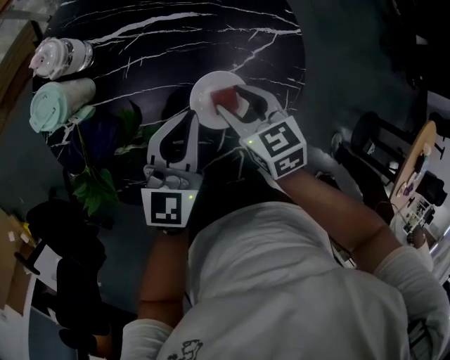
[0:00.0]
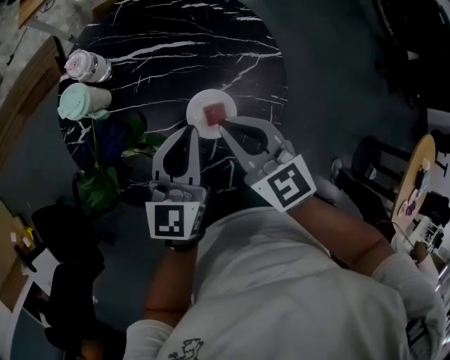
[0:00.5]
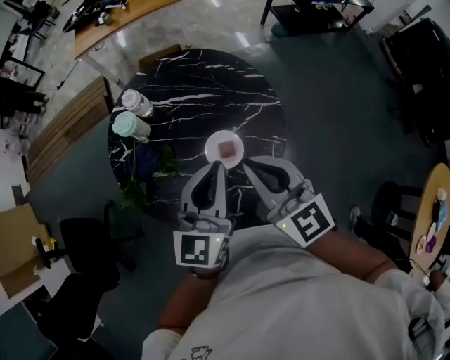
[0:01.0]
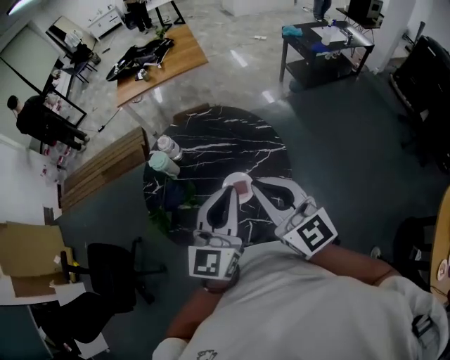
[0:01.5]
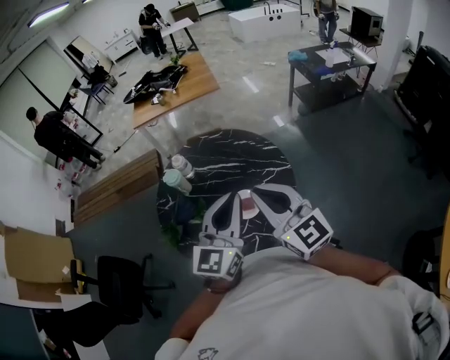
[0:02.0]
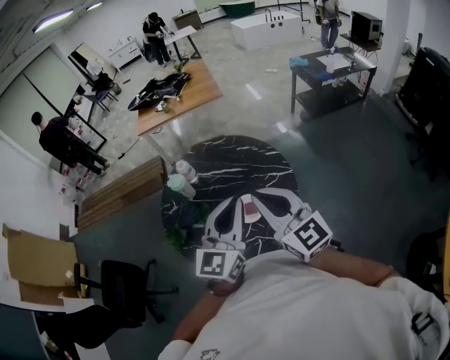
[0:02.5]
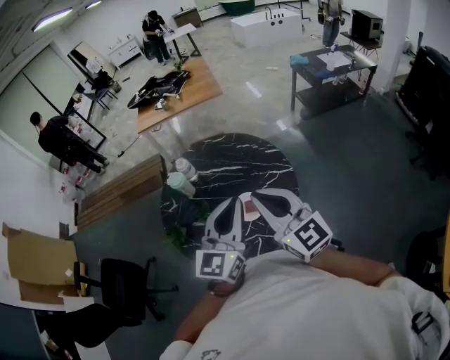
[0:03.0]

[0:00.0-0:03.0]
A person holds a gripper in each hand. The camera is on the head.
0:00.0 to 0:01.5: The left gripper moves upward, roughly 35 cm, and swivels roughly 20 degrees.

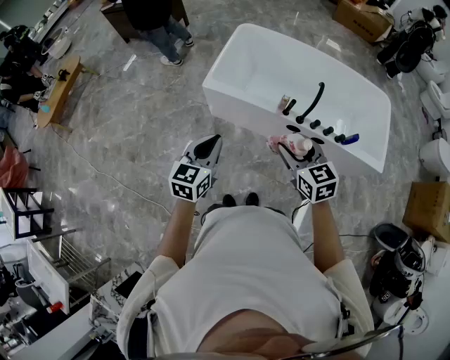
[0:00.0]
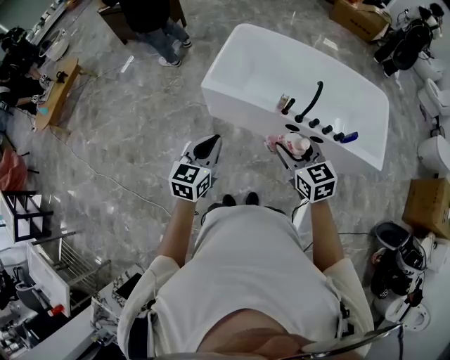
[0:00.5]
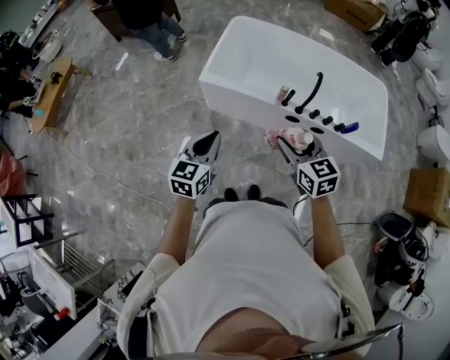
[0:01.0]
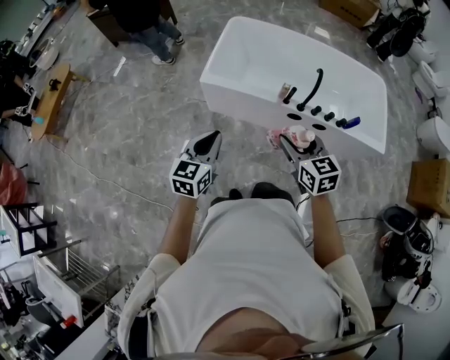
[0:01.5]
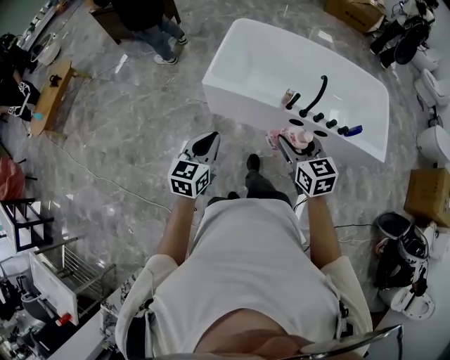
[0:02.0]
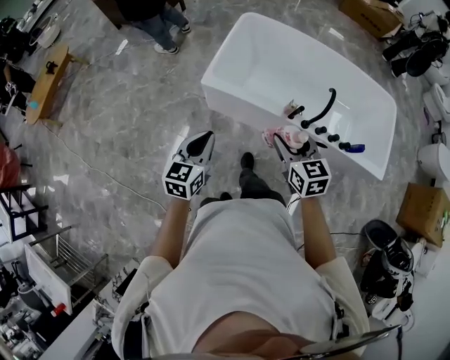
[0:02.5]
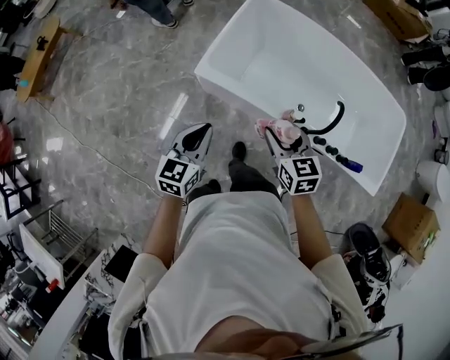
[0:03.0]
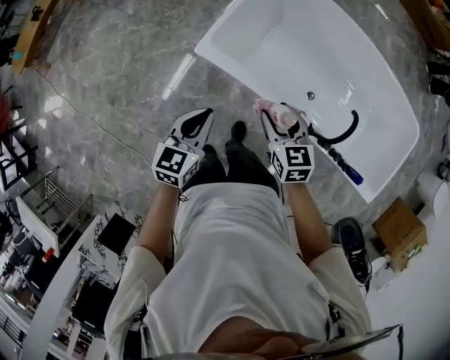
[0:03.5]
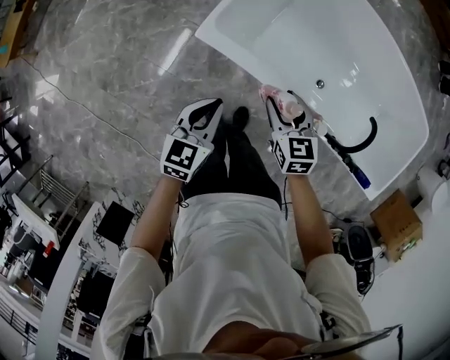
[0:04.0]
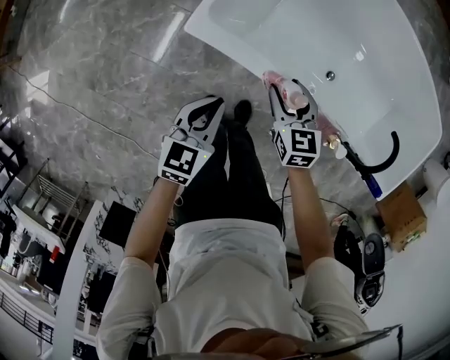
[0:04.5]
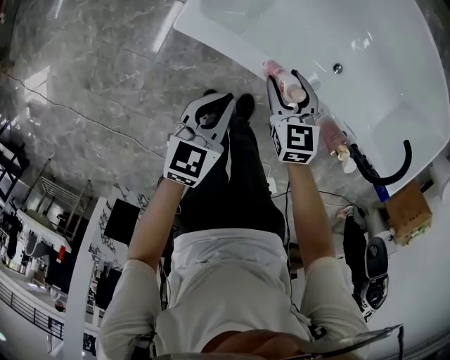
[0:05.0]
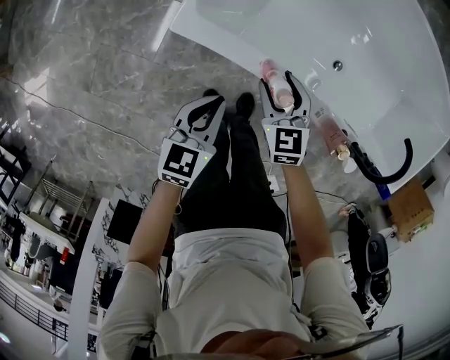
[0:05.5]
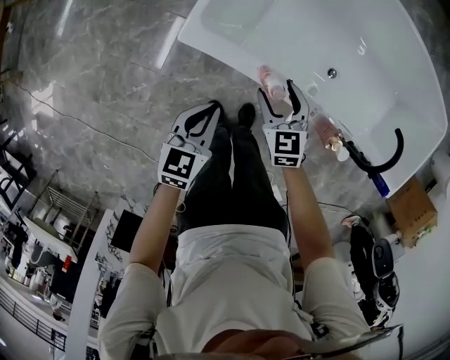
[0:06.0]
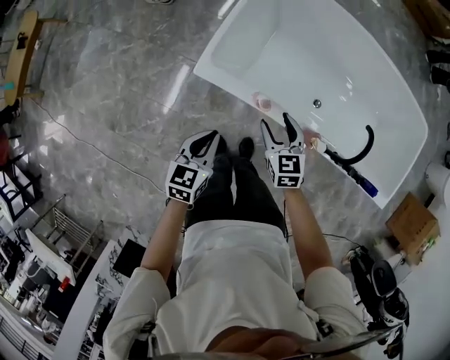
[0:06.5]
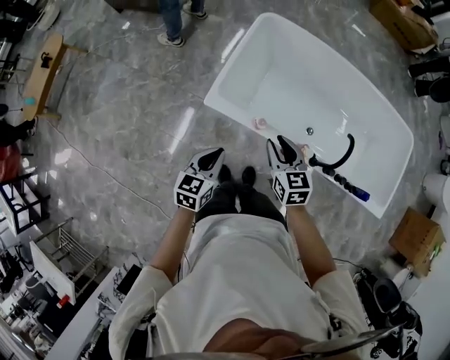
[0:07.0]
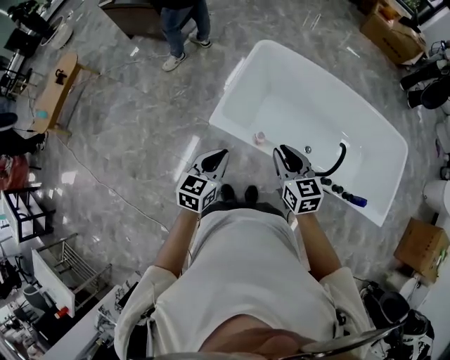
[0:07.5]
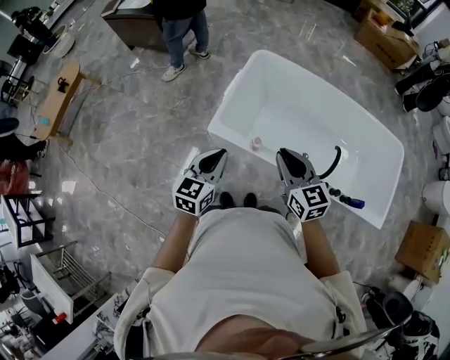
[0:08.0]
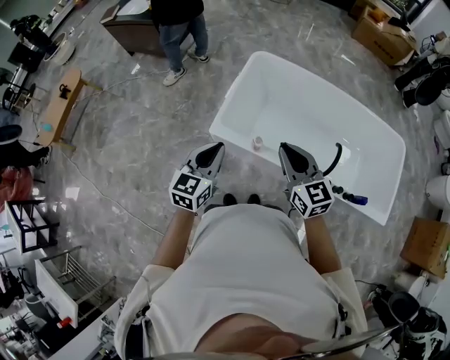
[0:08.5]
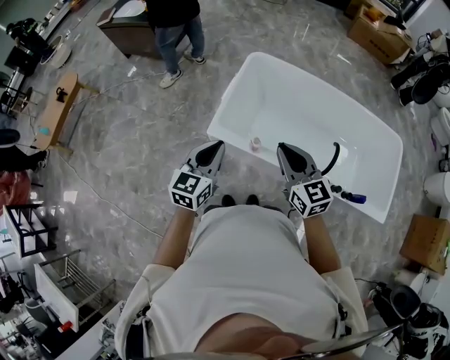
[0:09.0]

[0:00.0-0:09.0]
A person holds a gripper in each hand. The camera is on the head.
0:00.0 to 0:02.0: The left gripper moves to the left, about 5 cm.
0:02.0 to 0:04.5: The two grippers go some 60 cm forward and downward.
0:04.5 to 0:07.0: Both grippers travel together upward, approximately 25 cm.
0:07.0 to 0:09.0: Both grippers move upward, roughly 20 cm. The right gripper changes its angle by approximately 20 degrees.

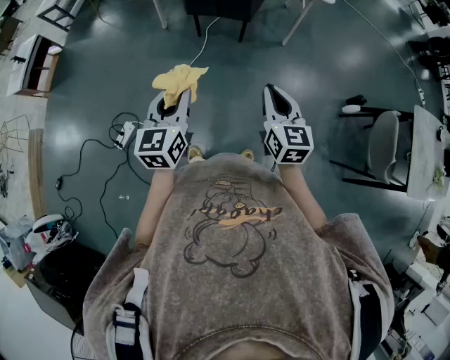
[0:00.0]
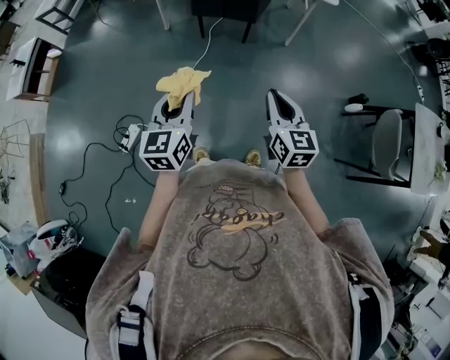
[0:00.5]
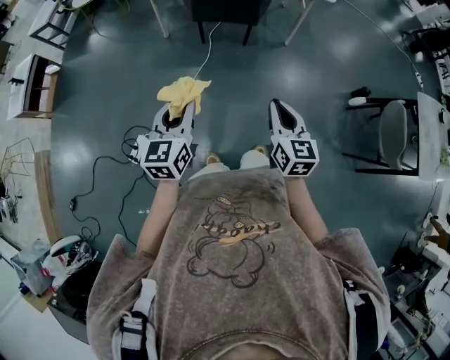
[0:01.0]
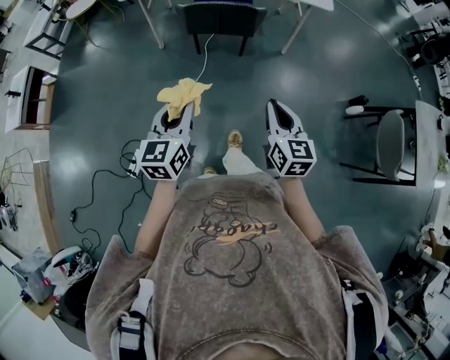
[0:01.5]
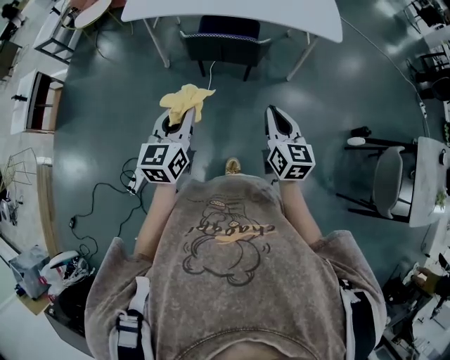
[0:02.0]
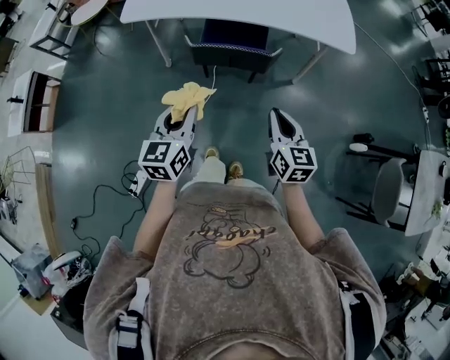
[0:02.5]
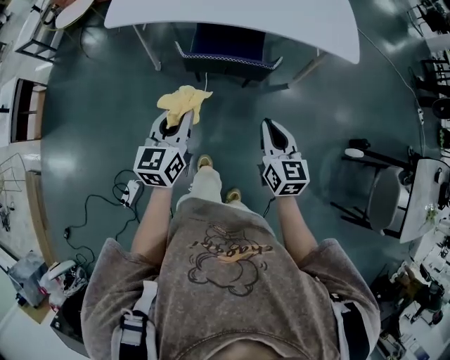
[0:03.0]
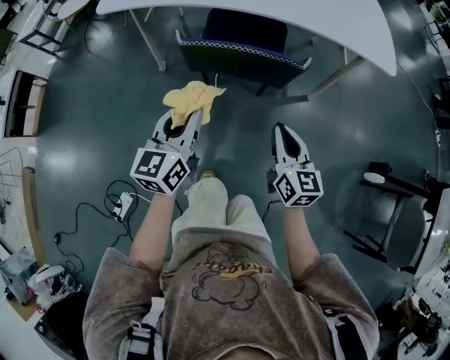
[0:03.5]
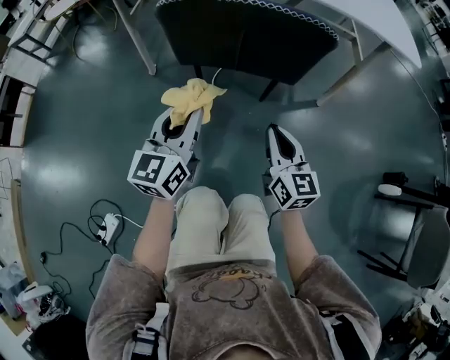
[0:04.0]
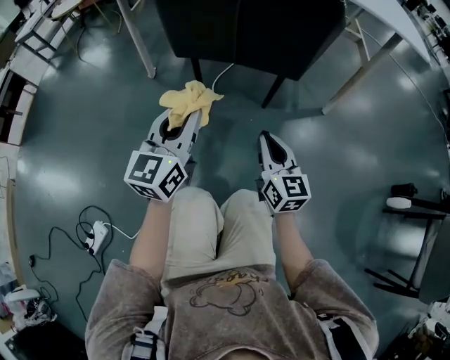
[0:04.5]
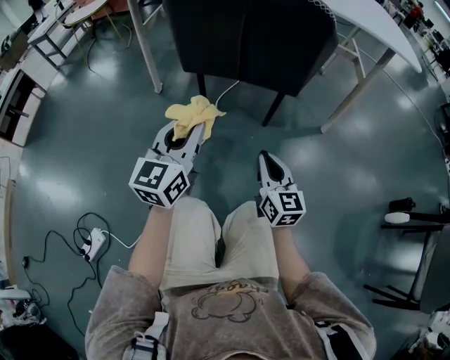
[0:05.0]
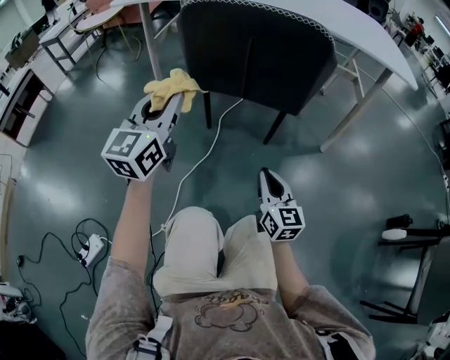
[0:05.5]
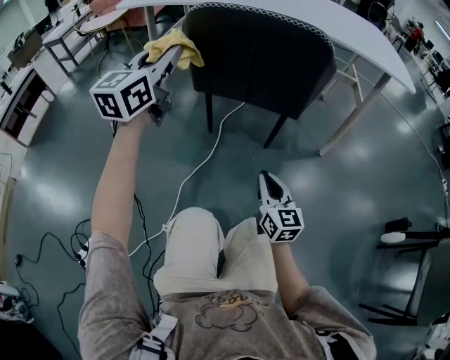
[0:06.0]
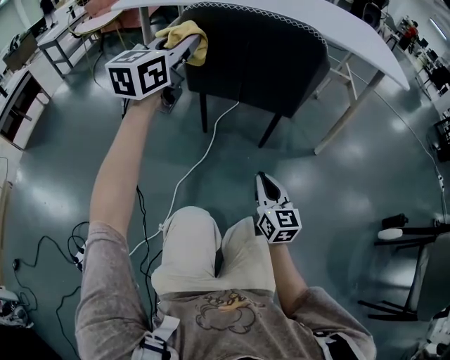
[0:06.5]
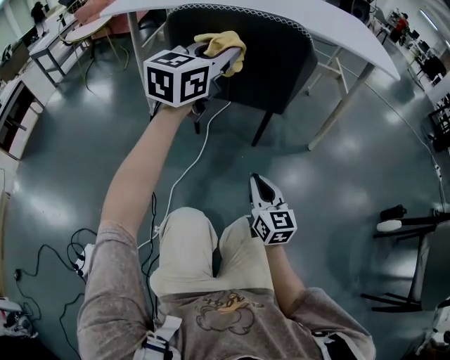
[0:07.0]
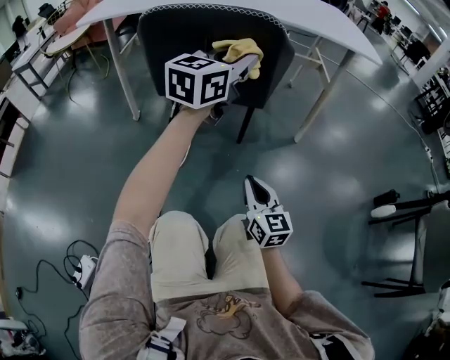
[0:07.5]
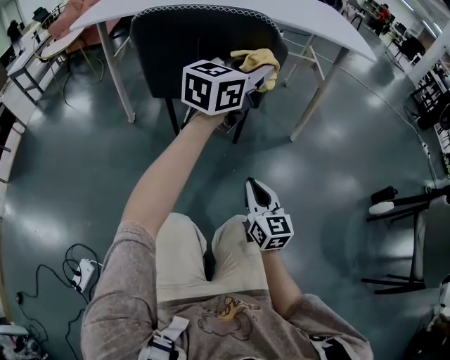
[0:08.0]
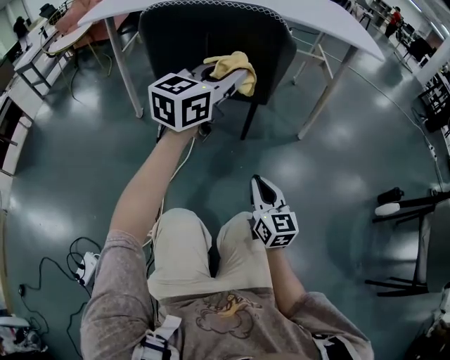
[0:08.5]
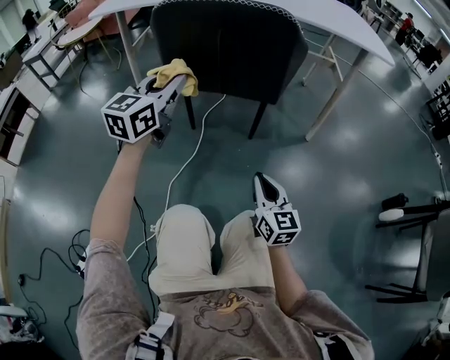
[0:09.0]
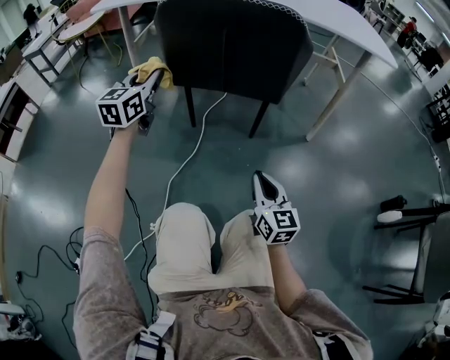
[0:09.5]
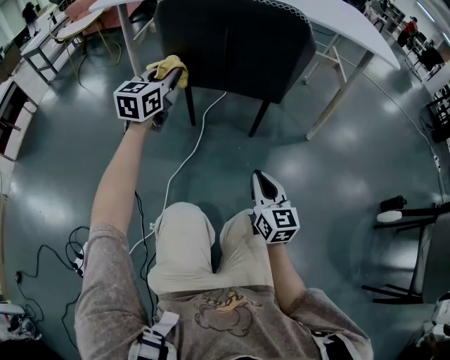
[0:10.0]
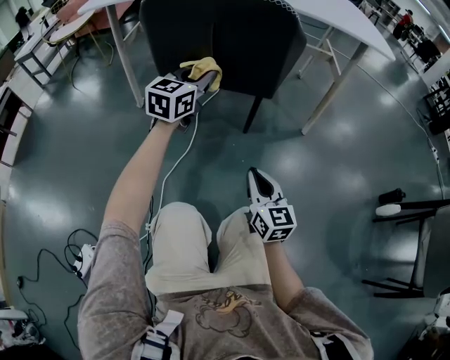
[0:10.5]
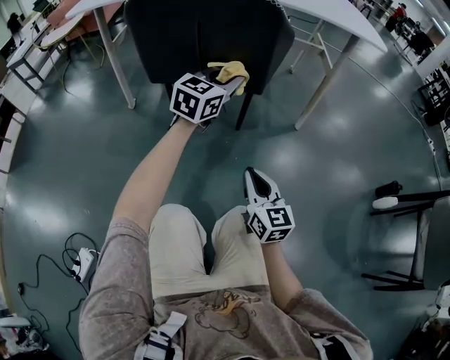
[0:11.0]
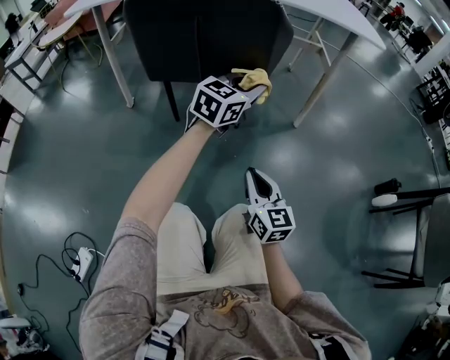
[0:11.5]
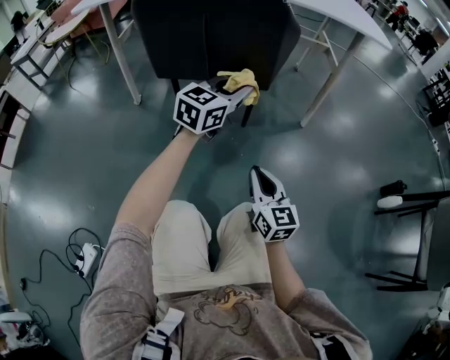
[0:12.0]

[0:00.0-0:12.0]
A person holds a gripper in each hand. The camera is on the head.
0:00.0 to 0:02.0: The two grippers go about 20 cm forward.
0:02.0 to 0:04.0: The grippers both shift downward and forward by about 40 cm.
0:04.0 to 0:06.0: The right gripper is displaced downward by some 10 cm. Meanwhile the left gripper goes approximately 15 cm upward, to the left and forward.
0:06.0 to 0:08.0: The left gripper goes about 30 cm to the right, and changes its angle by approximately 30 degrees; the right gripper travels to the right by some 5 cm.
0:08.0 to 0:10.0: The left gripper is displaced to the left and downward by approximately 30 cm, and swivels about 30 degrees.
0:10.0 to 0:12.0: The left gripper is displaced to the right by roughly 25 cm, and rotates about 20 degrees.

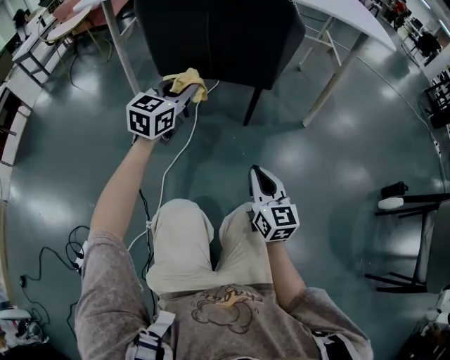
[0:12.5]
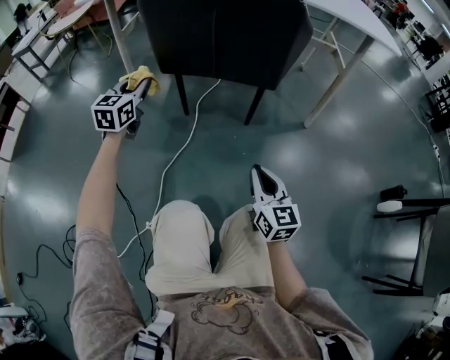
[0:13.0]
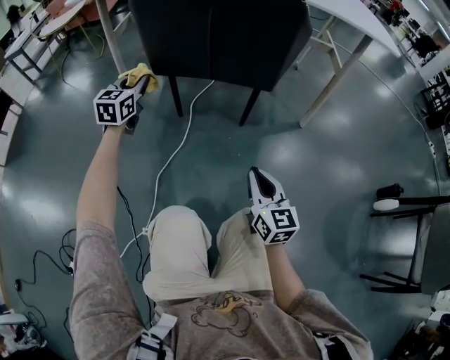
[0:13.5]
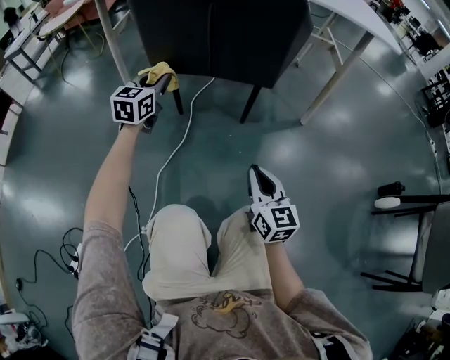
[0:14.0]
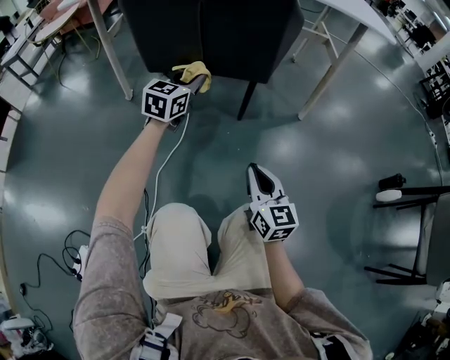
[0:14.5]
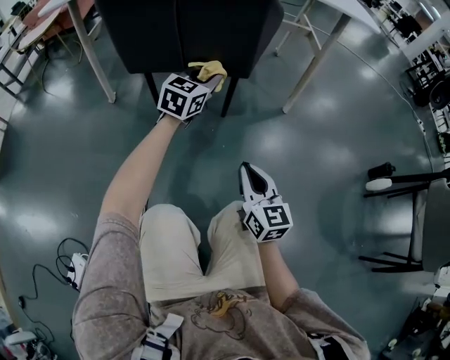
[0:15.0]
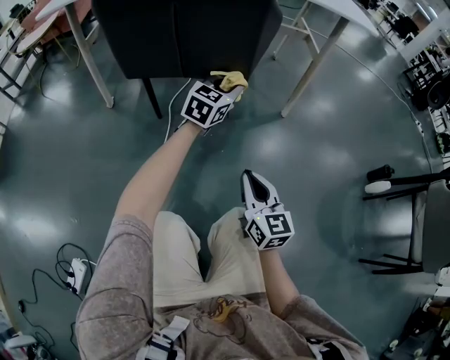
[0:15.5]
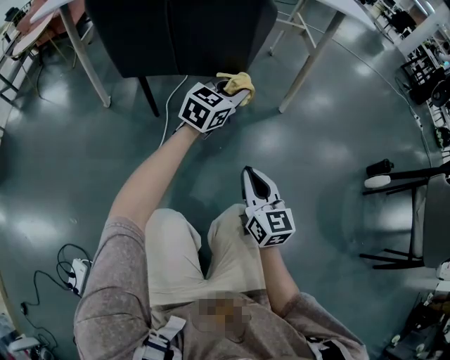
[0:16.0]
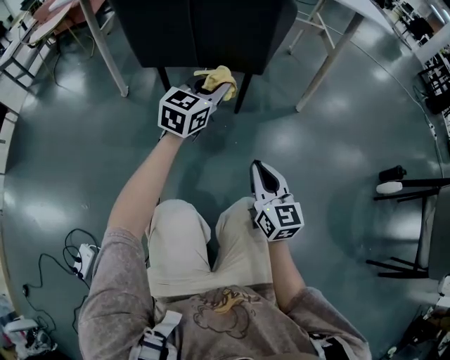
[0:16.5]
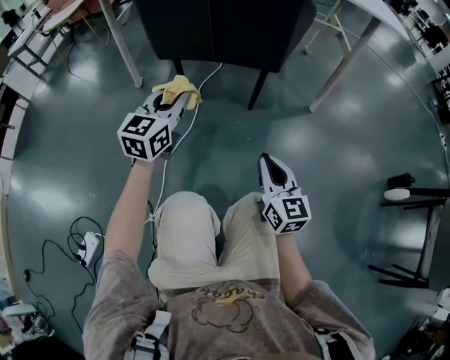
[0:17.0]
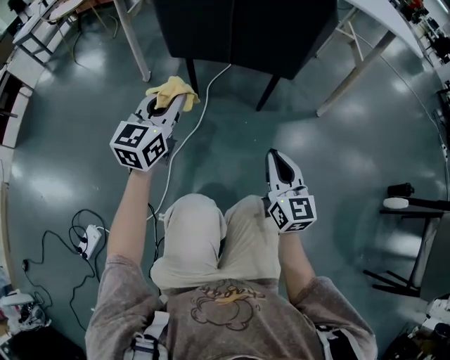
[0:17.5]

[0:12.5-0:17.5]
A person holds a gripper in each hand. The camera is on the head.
0:12.5 to 0:15.0: The left gripper is displaced to the right and forward by roughly 15 cm.
0:15.0 to 0:17.5: The left gripper is displaced to the left and backward by roughly 25 cm, and rotates approximately 20 degrees.
